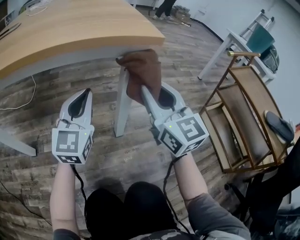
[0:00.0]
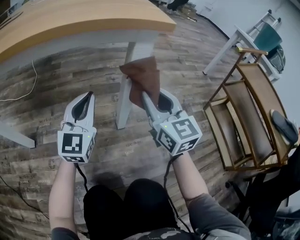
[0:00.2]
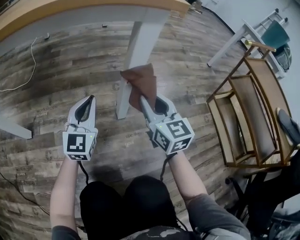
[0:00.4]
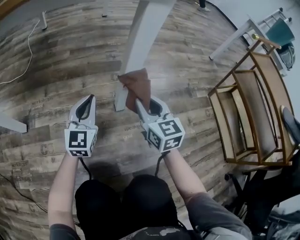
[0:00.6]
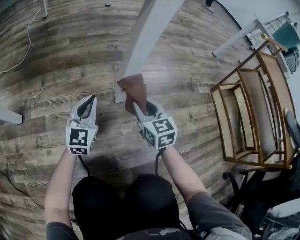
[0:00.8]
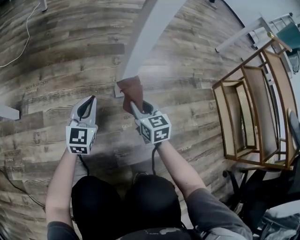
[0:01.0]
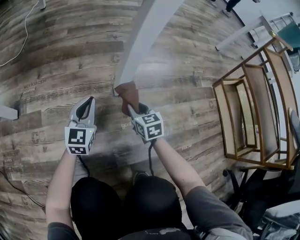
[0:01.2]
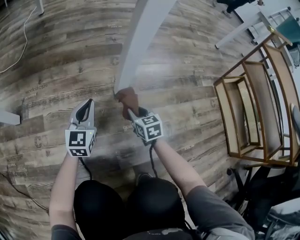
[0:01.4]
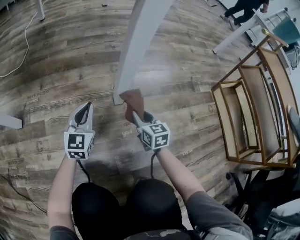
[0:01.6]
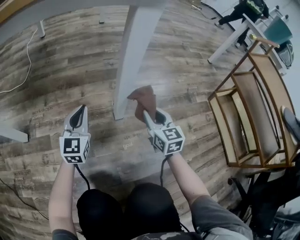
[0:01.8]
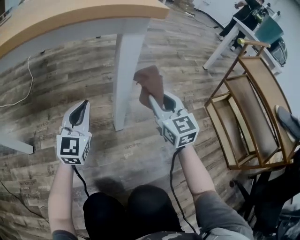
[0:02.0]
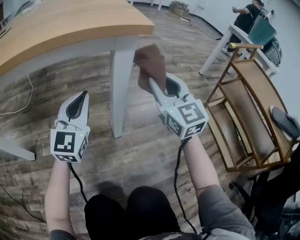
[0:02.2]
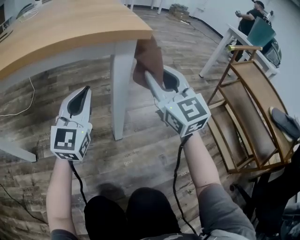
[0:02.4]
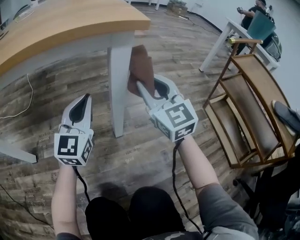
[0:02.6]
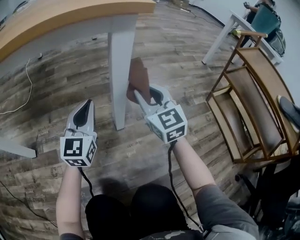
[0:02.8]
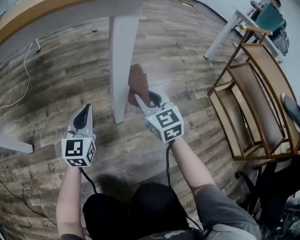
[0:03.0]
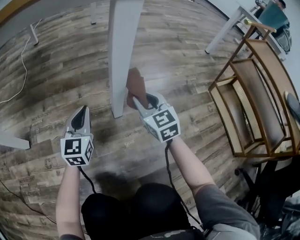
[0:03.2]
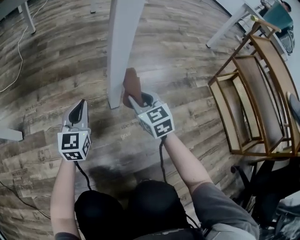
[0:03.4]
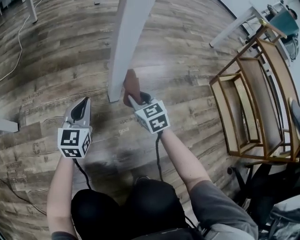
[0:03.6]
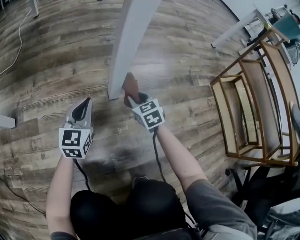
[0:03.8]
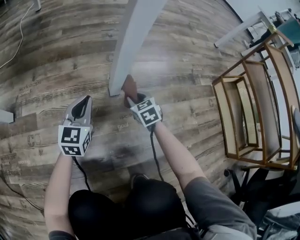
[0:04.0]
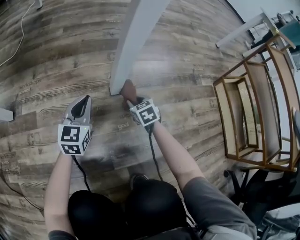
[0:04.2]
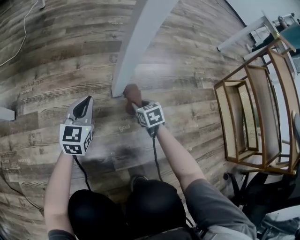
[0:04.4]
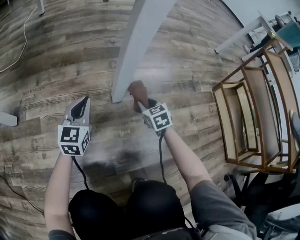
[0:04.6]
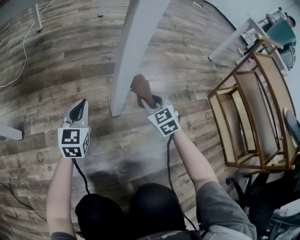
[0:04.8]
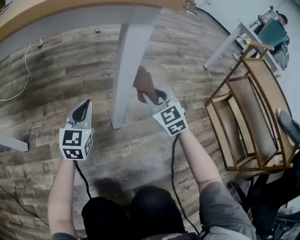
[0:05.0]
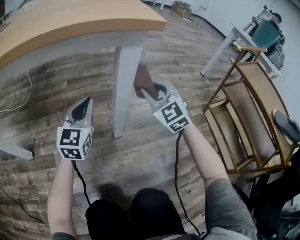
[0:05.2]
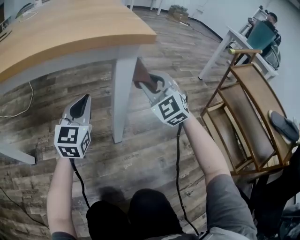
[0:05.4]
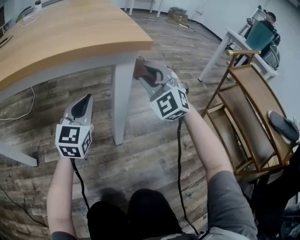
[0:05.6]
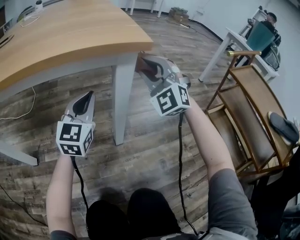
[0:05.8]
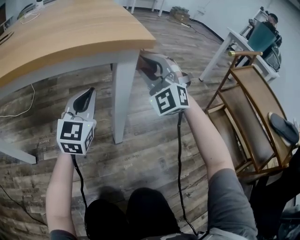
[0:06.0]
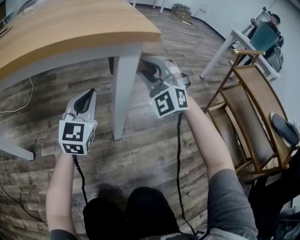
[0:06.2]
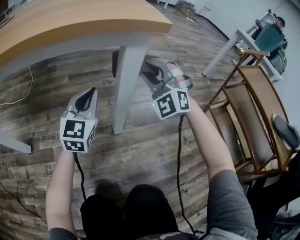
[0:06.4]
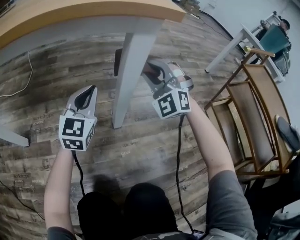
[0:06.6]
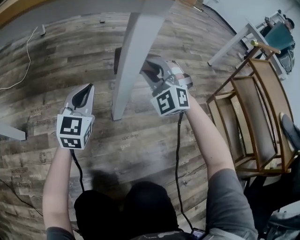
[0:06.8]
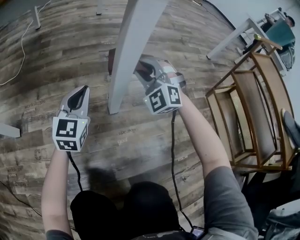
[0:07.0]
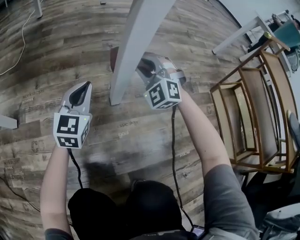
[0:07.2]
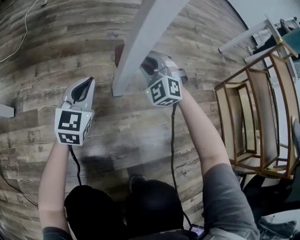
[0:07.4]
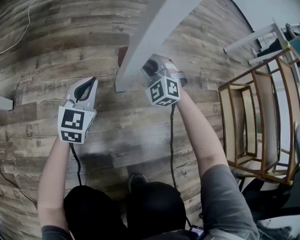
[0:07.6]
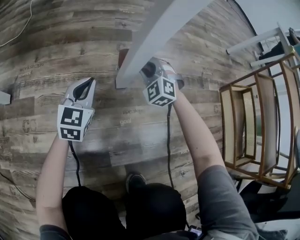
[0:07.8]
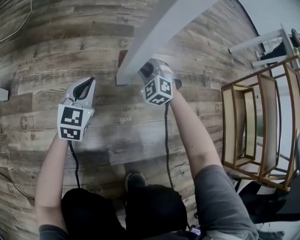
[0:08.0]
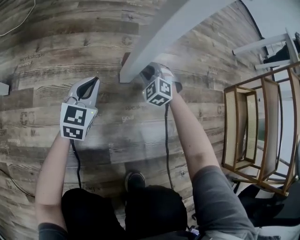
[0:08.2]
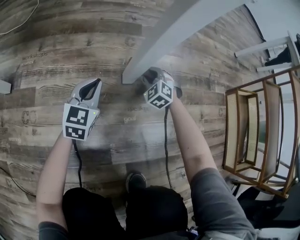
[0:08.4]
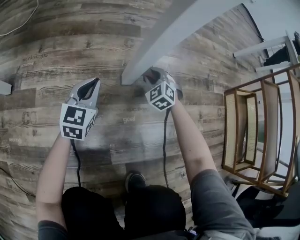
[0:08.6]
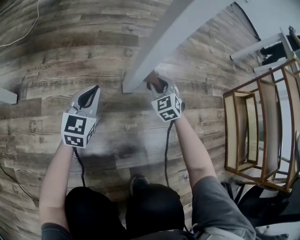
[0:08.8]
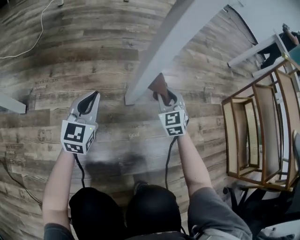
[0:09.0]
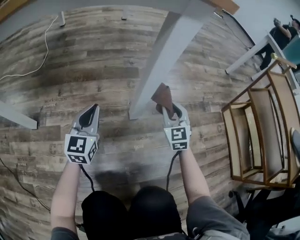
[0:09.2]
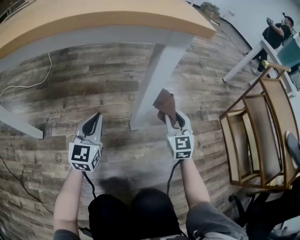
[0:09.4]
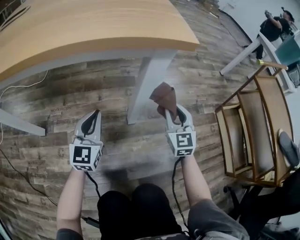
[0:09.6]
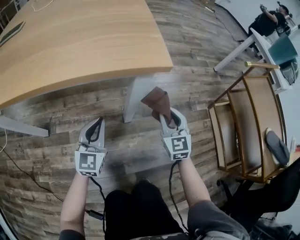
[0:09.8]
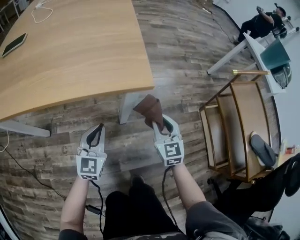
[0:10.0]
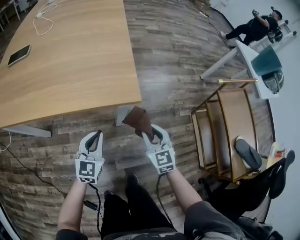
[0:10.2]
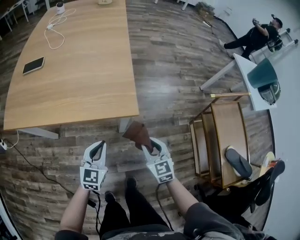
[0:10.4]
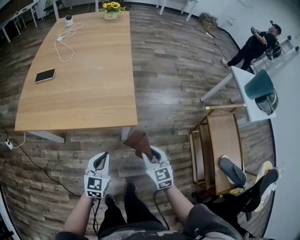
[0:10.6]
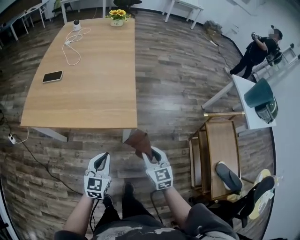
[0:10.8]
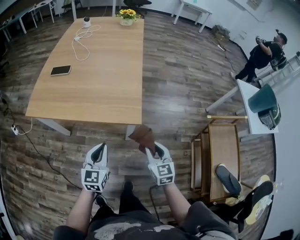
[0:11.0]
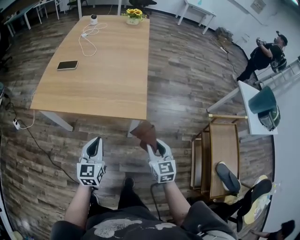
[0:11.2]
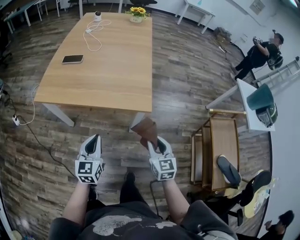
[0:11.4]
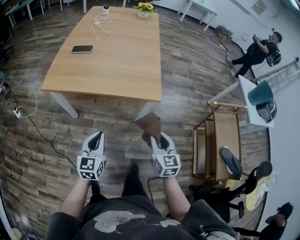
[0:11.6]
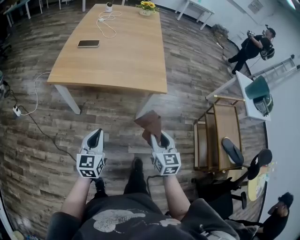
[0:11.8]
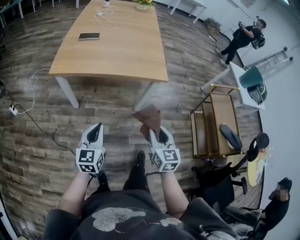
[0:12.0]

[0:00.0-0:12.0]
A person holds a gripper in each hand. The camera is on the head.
0.0 to 1.6 s: Both grippers travel together downward, about 40 cm. The right gripper tips its fingers downward by about 30 degrees.
1.6 to 3.0 s: The left gripper heads upward, covering some 10 cm. Meanwhile the right gripper moves upward, about 20 cm, and turns by approximately 30 degrees.
3.0 to 4.4 s: The right gripper goes about 30 cm downward, and angles its fingers downward, by approximately 40 degrees, while the left gripper travels downward by some 15 cm.
4.4 to 6.0 s: The left gripper heads upward, covering roughly 30 cm, and rotates roughly 20 degrees; the right gripper is displaced upward by some 50 cm, and tips its fingers upward by approximately 50 degrees.
6.0 to 7.6 s: The two grippers go about 35 cm downward. The right gripper swivels about 30 degrees.
7.6 to 9.0 s: The right gripper travels to the right by about 5 cm, goes downward and returns, roughly 15 cm each way, and turns by some 40 degrees; the left gripper reaches about 10 cm downward, then returns.
9.0 to 10.4 s: Both grippers move upward, approximately 40 cm. The right gripper swivels approximately 20 degrees.
10.4 to 12.0 s: The left gripper shifts about 35 cm to the left, backward and upward. Meanwhile the right gripper is displaced backward, to the left and upward by roughly 30 cm.

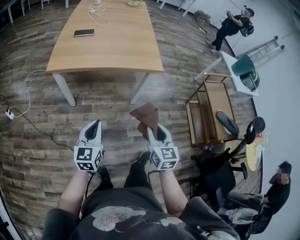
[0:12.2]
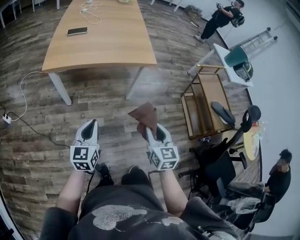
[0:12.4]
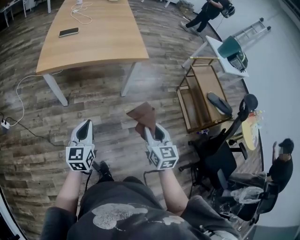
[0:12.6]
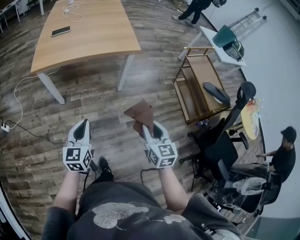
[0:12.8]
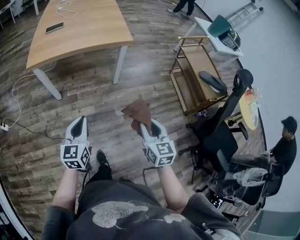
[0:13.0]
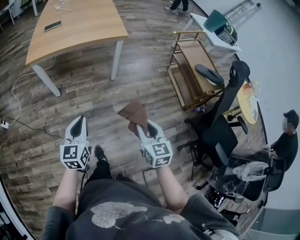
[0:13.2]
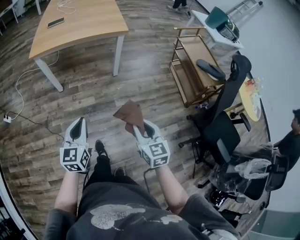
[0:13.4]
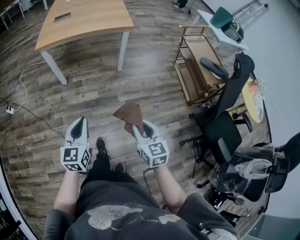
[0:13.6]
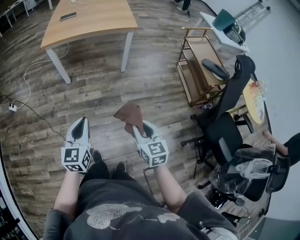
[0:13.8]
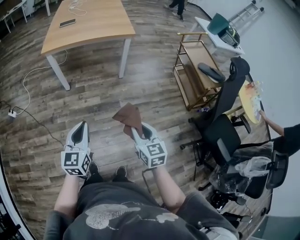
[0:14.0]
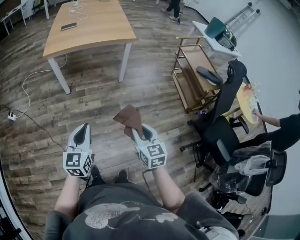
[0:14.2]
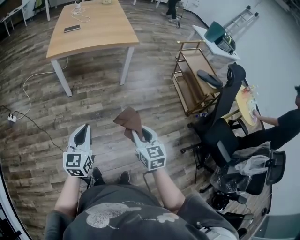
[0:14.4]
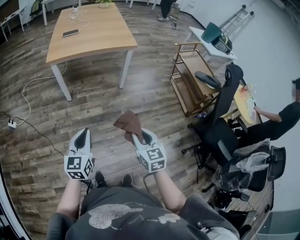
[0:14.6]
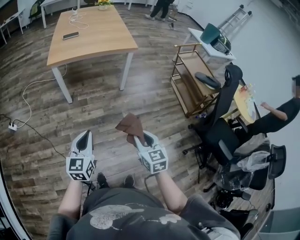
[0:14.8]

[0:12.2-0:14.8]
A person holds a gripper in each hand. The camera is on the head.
12.2 to 13.4 s: The grippers both shift backward by some 25 cm.
13.4 to 14.8 s: Both grippers travel together to the left and backward, some 10 cm.

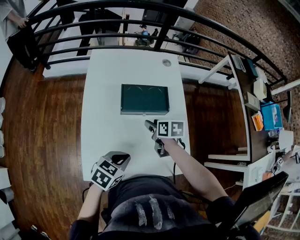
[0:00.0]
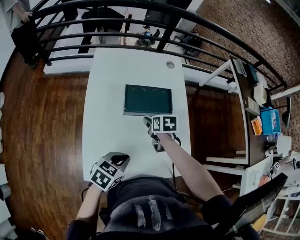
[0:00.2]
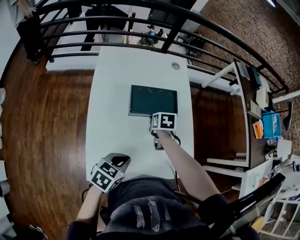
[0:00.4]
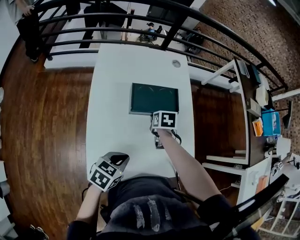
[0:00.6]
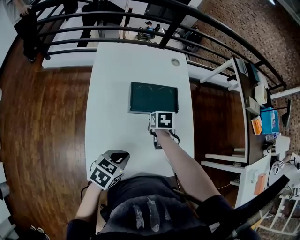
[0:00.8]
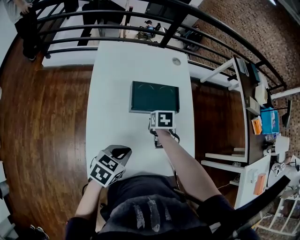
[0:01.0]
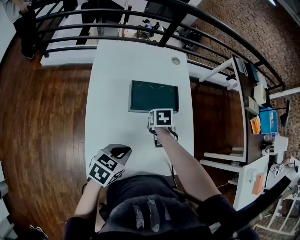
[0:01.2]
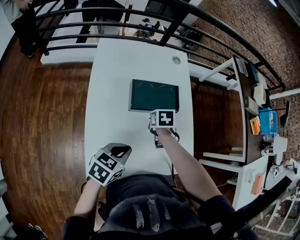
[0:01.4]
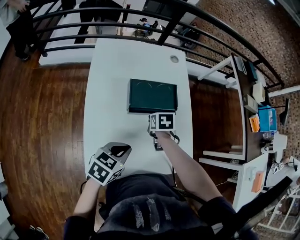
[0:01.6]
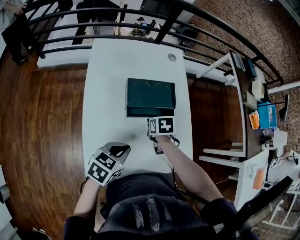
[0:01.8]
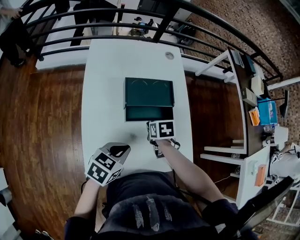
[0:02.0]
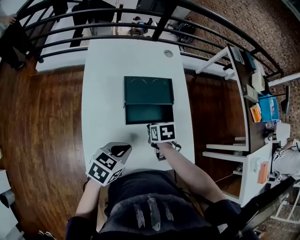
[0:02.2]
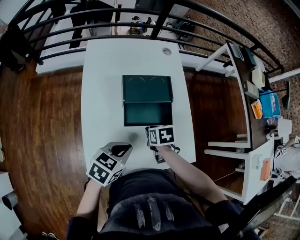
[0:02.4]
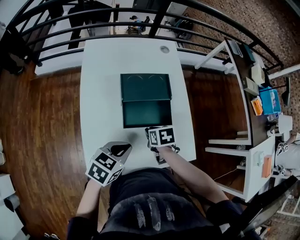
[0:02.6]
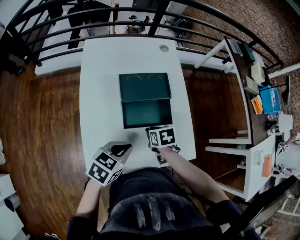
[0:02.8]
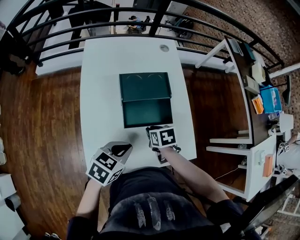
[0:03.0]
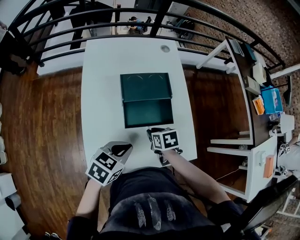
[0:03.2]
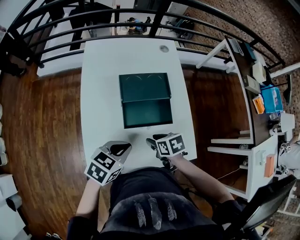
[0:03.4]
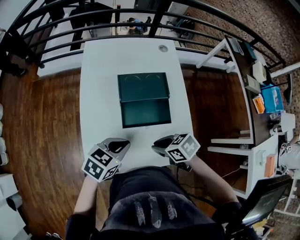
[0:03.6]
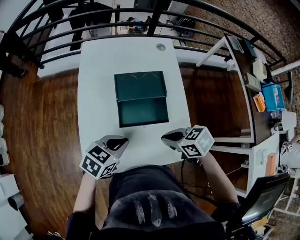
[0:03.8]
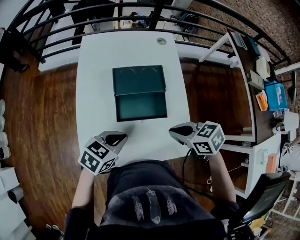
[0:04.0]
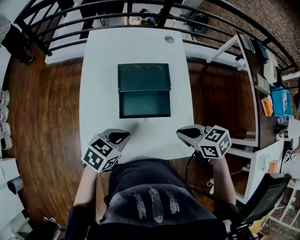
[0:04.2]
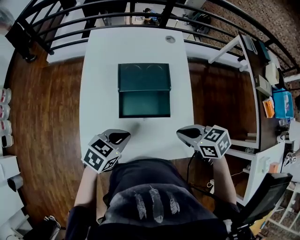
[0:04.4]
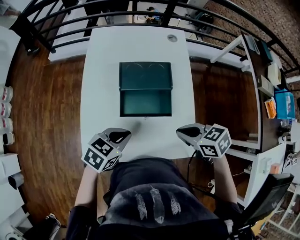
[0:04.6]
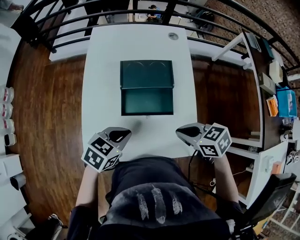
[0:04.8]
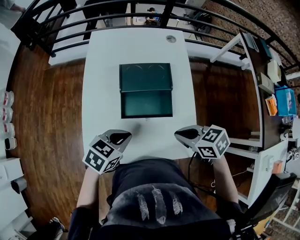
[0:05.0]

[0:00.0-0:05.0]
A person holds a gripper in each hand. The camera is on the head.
0.0 to 1.6 s: The left gripper shifts some 5 cm to the left. Meanwhile the right gripper changes place by about 5 cm, changes its angle by roughly 20 degrees, and closes its fingers.
1.6 to 3.4 s: The right gripper heads backward, covering about 15 cm, rotates some 20 degrees, and opens its fingers.
3.4 to 5.0 s: The right gripper heads upward, covering roughly 10 cm, rotates about 30 degrees, and closes.

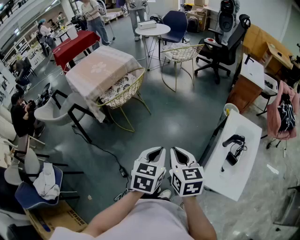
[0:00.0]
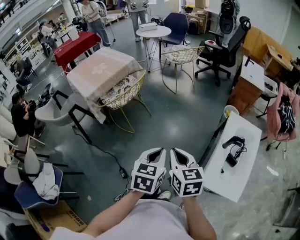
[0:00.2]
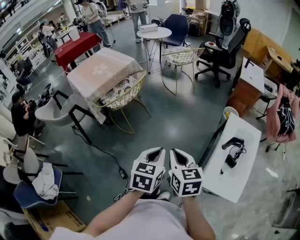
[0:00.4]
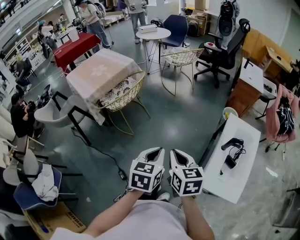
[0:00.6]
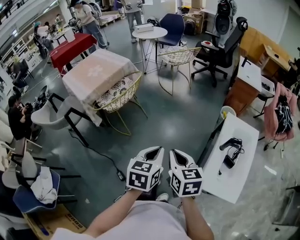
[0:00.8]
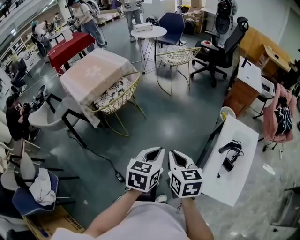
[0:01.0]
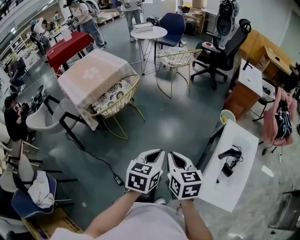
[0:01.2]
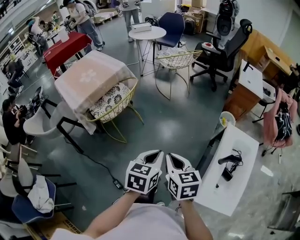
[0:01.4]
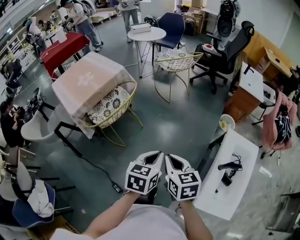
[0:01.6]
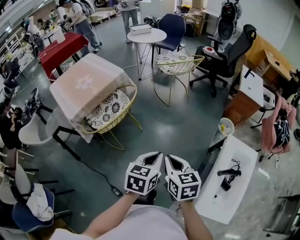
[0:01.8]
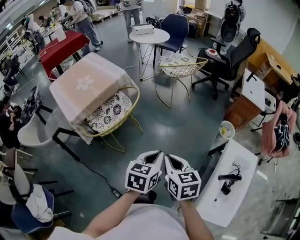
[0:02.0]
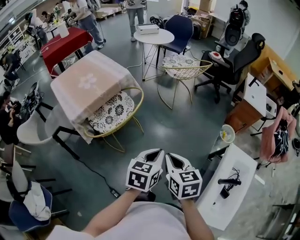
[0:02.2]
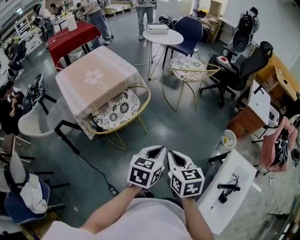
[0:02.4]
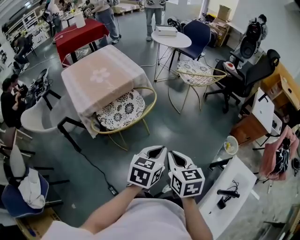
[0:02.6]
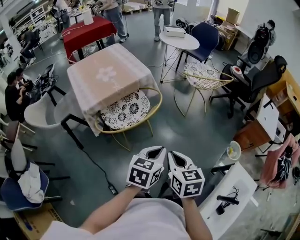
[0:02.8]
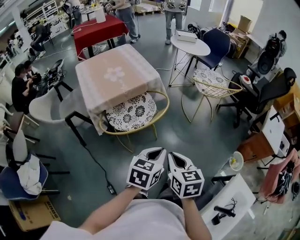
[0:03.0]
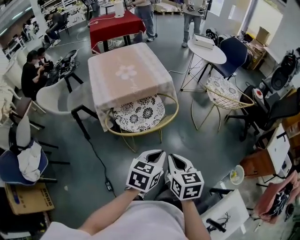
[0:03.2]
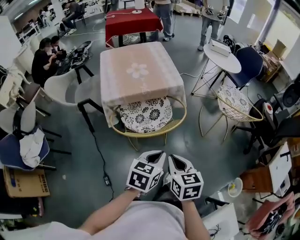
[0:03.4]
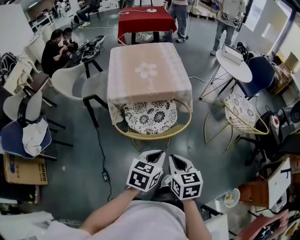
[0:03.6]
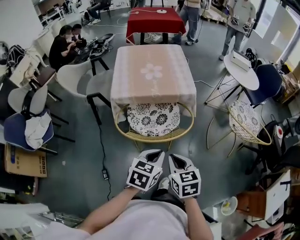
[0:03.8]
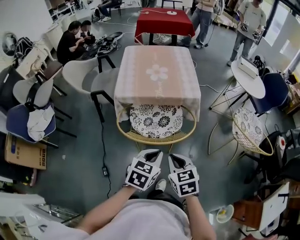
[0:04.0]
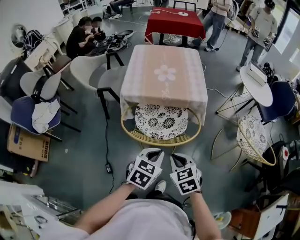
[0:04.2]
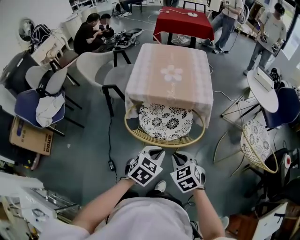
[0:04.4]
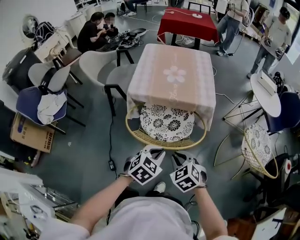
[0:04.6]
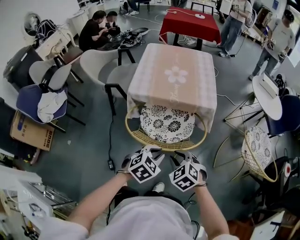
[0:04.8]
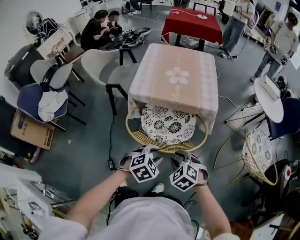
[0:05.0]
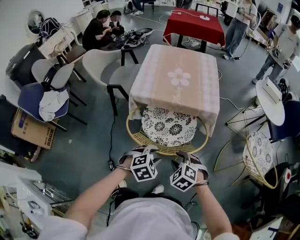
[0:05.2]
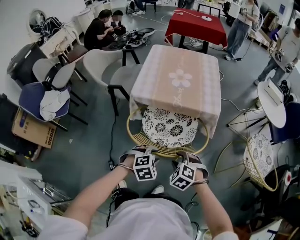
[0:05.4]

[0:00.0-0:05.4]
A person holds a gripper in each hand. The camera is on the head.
0.0 to 1.4 s: The grippers both shift forward by approximately 15 cm.
1.4 to 2.8 s: Both grippers move forward and to the left, roughly 25 cm.
2.8 to 4.0 s: The right gripper shifts by about 20 cm, and changes its angle by some 50 degrees, while the left gripper changes place by roughly 15 cm, and changes its angle by about 30 degrees.
4.0 to 5.4 s: The right gripper heads downward and forward, covering roughly 15 cm, rolls counterclockwise, seen from behind, by roughly 50 degrees, and opens up, while the left gripper is displaced downward by approximately 15 cm, turns by about 50 degrees, and opens.
